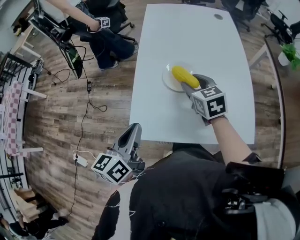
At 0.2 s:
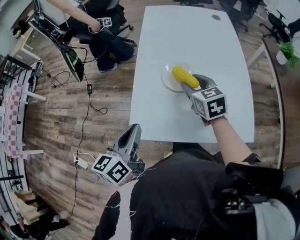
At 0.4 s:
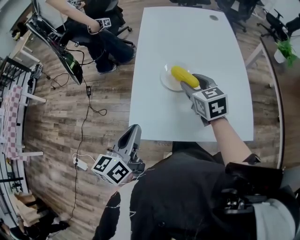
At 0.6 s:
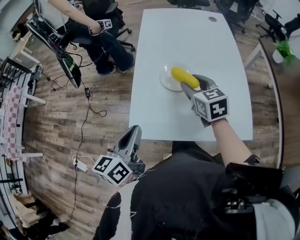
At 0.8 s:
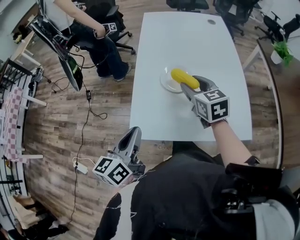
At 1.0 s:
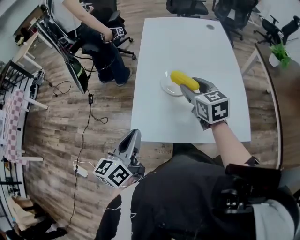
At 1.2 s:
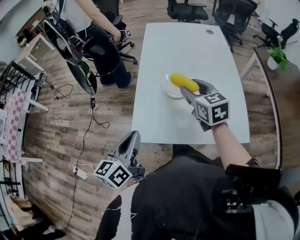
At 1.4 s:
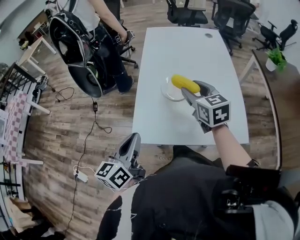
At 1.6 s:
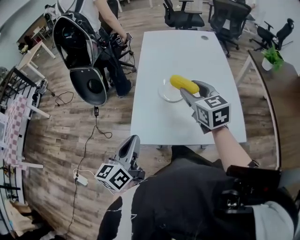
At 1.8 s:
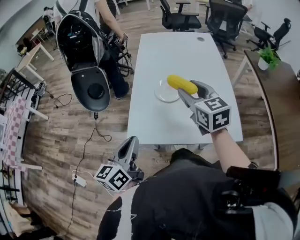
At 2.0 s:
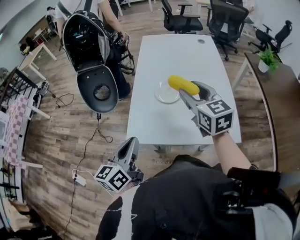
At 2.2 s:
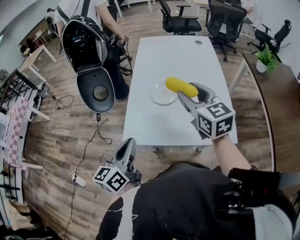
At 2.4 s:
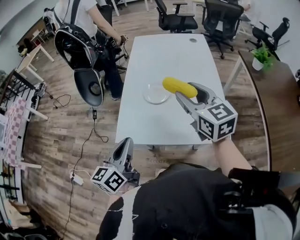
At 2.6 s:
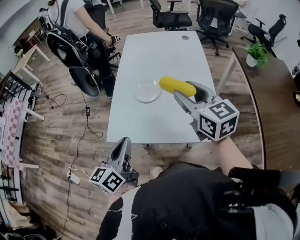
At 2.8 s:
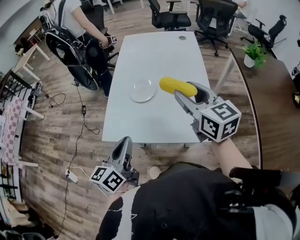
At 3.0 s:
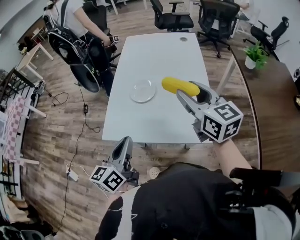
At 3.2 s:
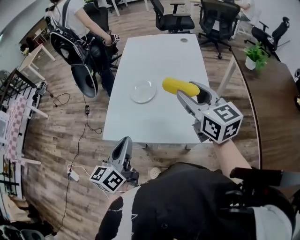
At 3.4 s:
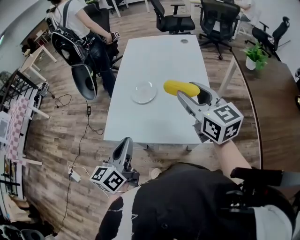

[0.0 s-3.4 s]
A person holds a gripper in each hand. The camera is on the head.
0.0 to 1.6 s: The left gripper is displaced backward by about 5 cm, while the right gripper goes roughly 15 cm upward and backward.
1.6 to 3.4 s: The right gripper travels to the right, upward and backward by about 20 cm. The left gripper is displaced to the right by some 15 cm.

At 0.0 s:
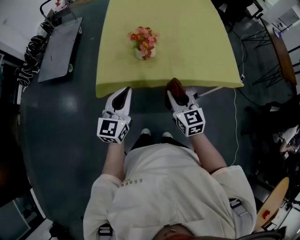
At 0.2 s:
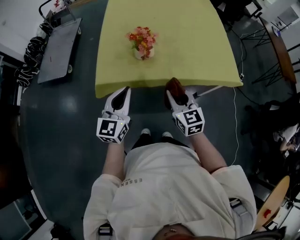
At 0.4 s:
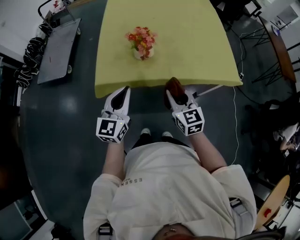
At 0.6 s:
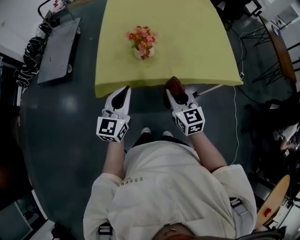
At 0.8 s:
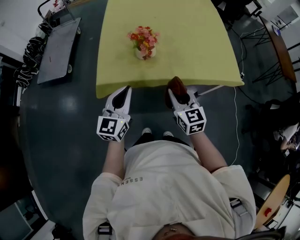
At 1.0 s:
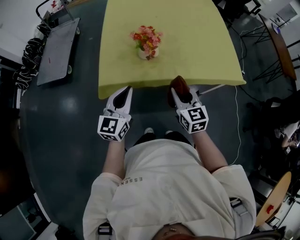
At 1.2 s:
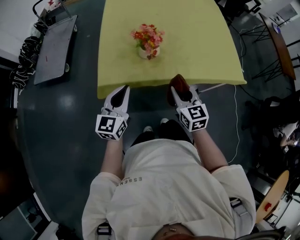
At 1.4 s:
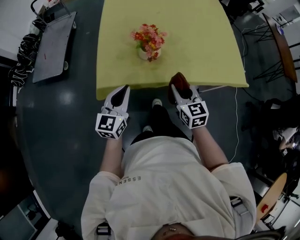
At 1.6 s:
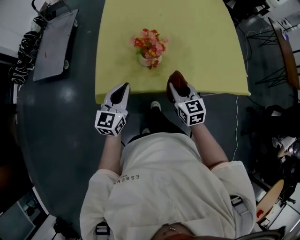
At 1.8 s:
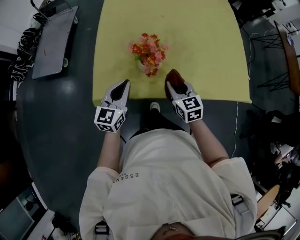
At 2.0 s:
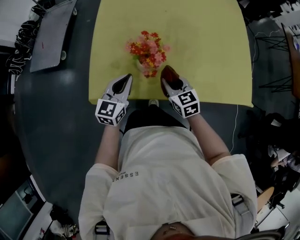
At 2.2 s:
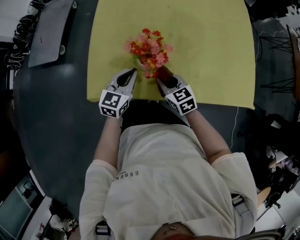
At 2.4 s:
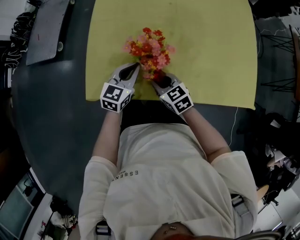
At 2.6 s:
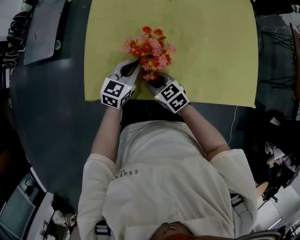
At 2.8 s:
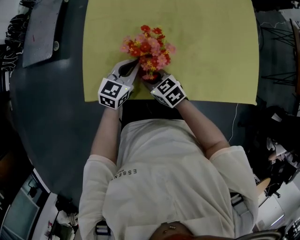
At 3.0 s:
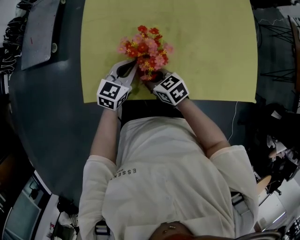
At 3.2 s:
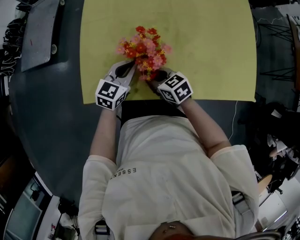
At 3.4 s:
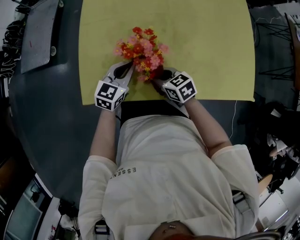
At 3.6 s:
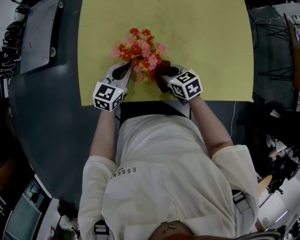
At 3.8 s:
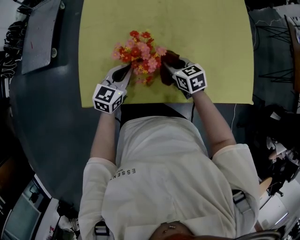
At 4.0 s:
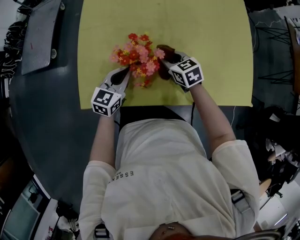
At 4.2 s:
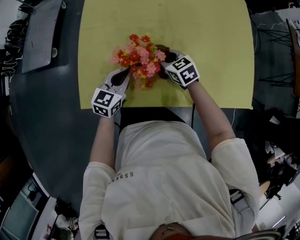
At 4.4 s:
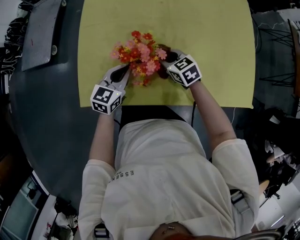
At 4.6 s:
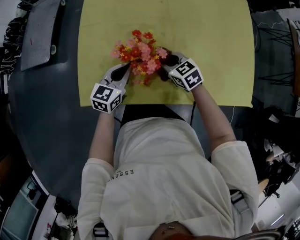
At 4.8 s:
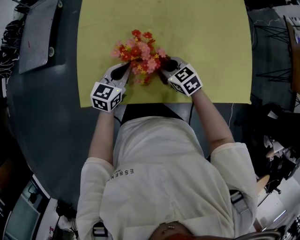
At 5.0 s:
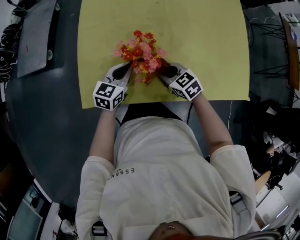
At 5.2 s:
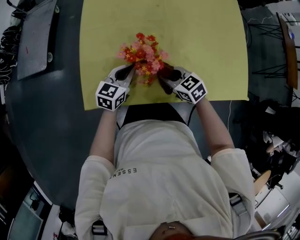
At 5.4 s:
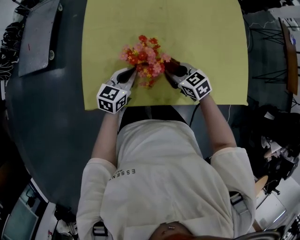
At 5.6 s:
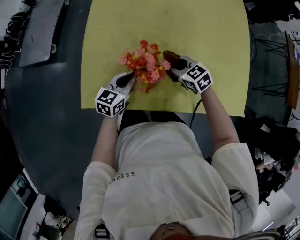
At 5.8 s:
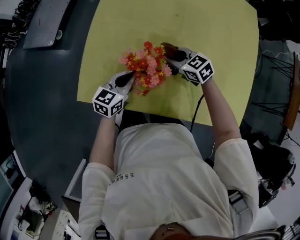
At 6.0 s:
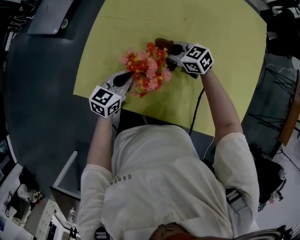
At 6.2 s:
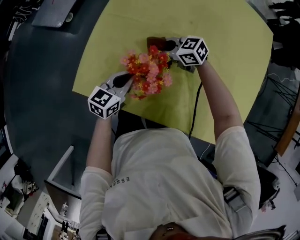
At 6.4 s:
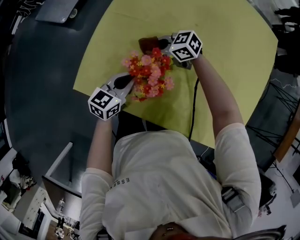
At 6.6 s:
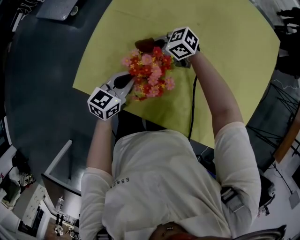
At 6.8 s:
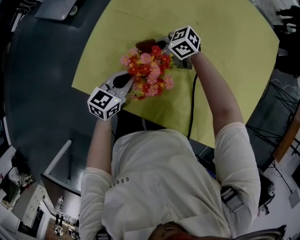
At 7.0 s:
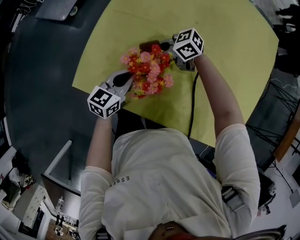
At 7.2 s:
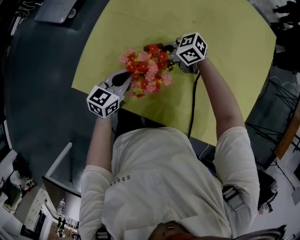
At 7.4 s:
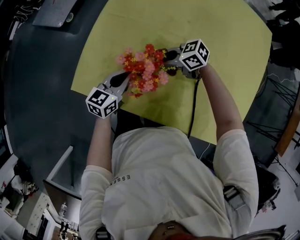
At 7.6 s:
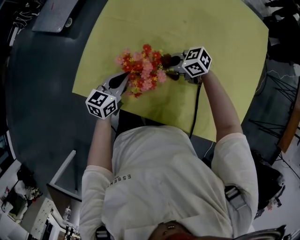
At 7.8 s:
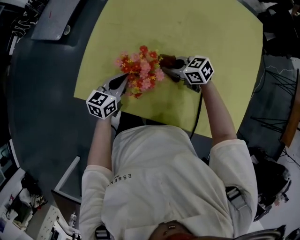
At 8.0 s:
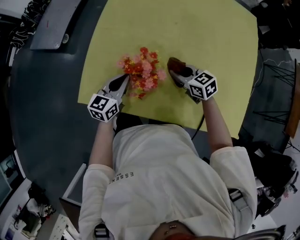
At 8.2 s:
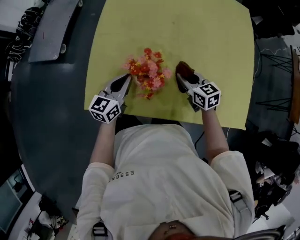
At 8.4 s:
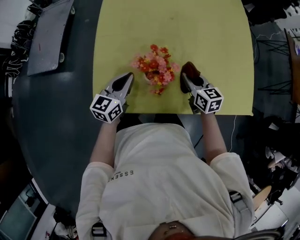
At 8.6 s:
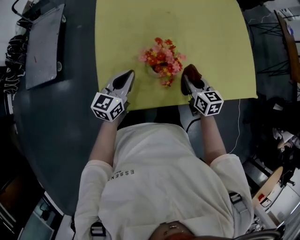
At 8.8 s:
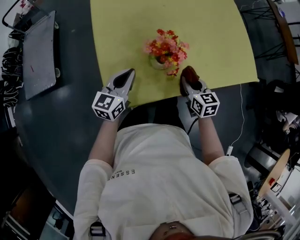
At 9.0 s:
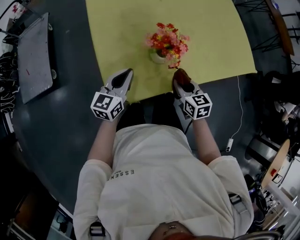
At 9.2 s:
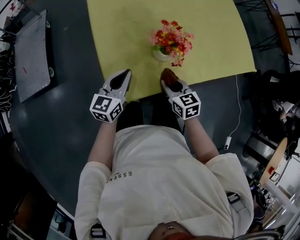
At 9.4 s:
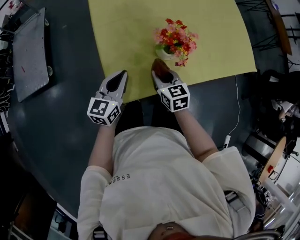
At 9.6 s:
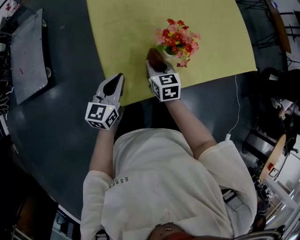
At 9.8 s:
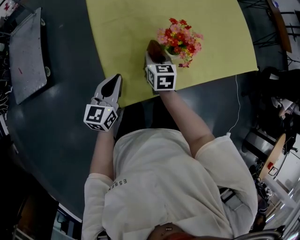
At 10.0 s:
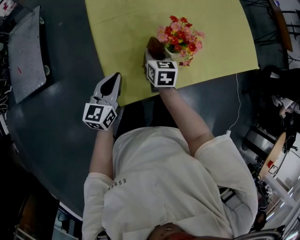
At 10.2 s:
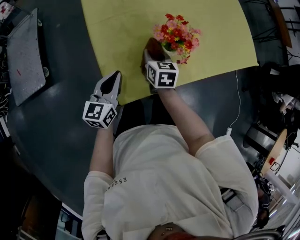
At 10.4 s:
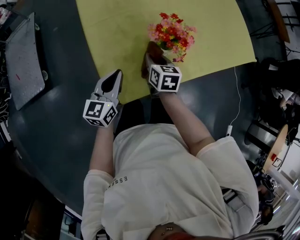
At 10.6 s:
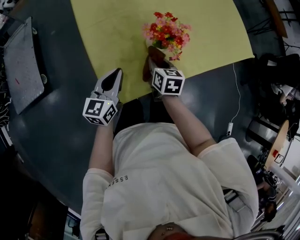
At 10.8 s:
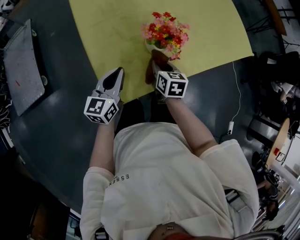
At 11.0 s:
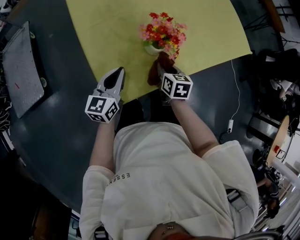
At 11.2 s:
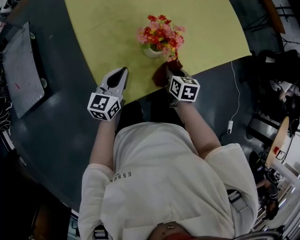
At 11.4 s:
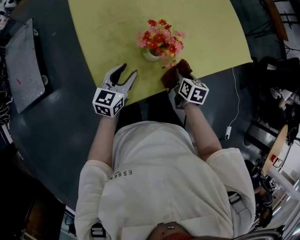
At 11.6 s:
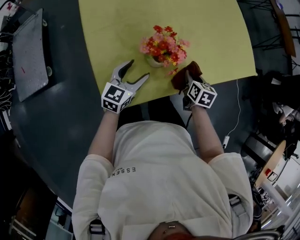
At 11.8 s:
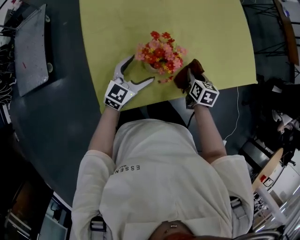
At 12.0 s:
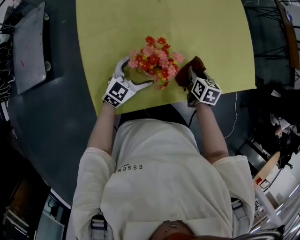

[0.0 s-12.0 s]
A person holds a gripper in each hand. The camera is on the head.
0.0 to 1.6 s: The two grippers go roughly 15 cm forward and downward.
1.6 to 3.0 s: The left gripper is displaced forward, downward and to the right by roughly 20 cm. Meanwhile the right gripper travels downward, forward and to the left by approximately 20 cm, and swivels about 40 degrees.
3.0 to 4.4 s: The right gripper travels to the right and forward by approximately 15 cm.
4.4 to 6.0 s: The right gripper is displaced forward by about 10 cm, and swivels roughly 30 degrees.
6.0 to 7.6 s: The right gripper changes its angle by about 20 degrees.
7.6 to 9.0 s: The right gripper shifts by about 20 cm, and turns by roughly 90 degrees. Meanwhile the left gripper ends up about 15 cm from where it was, and changes its angle by some 30 degrees.
9.0 to 10.4 s: The left gripper shifts approximately 5 cm to the left; the right gripper heads to the left and forward, covering roughly 15 cm.
10.4 to 12.0 s: The grippers both shift to the right and forward by about 20 cm. The left gripper turns by approximately 30 degrees, and opens.

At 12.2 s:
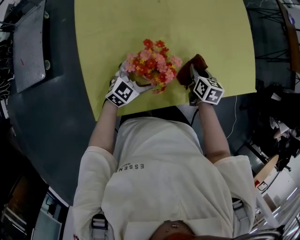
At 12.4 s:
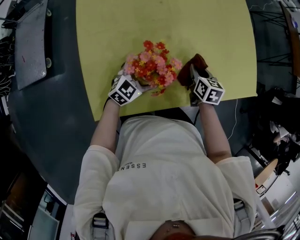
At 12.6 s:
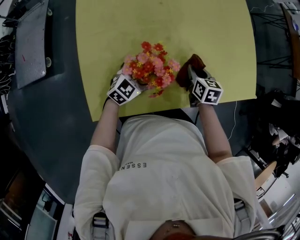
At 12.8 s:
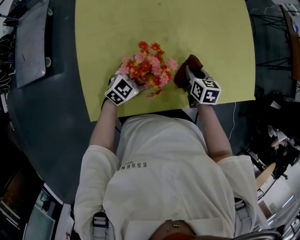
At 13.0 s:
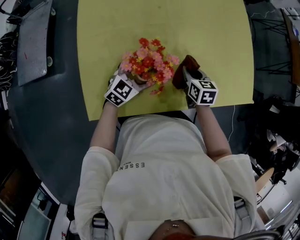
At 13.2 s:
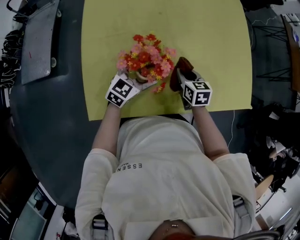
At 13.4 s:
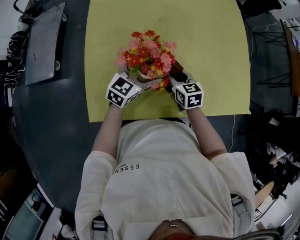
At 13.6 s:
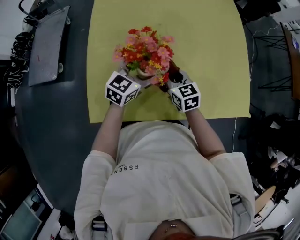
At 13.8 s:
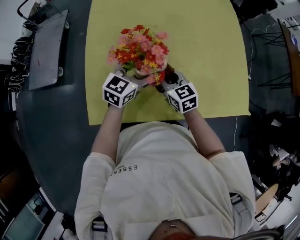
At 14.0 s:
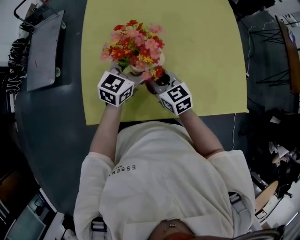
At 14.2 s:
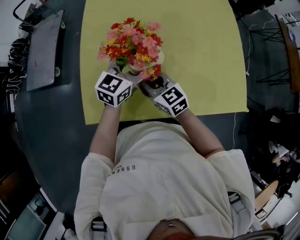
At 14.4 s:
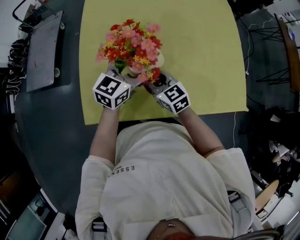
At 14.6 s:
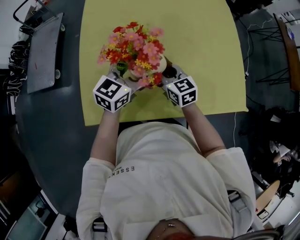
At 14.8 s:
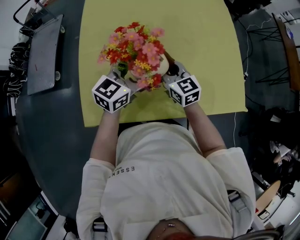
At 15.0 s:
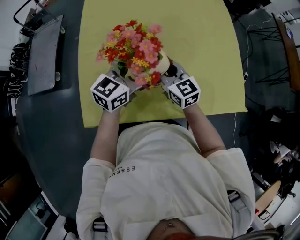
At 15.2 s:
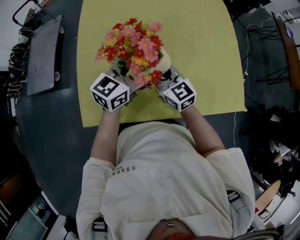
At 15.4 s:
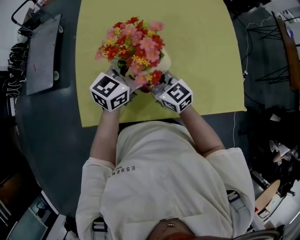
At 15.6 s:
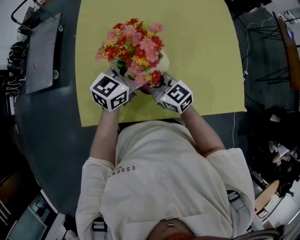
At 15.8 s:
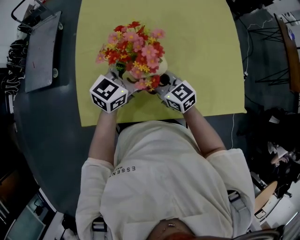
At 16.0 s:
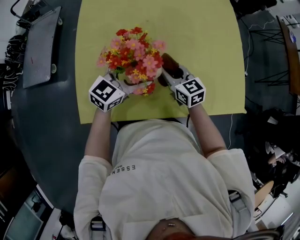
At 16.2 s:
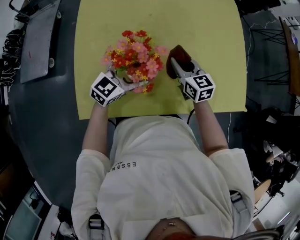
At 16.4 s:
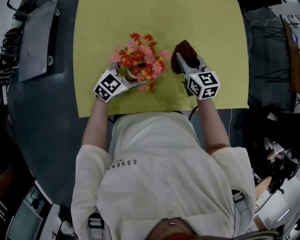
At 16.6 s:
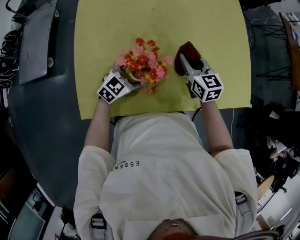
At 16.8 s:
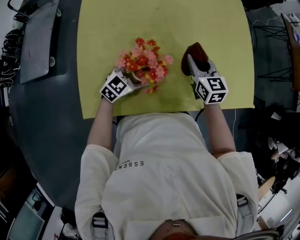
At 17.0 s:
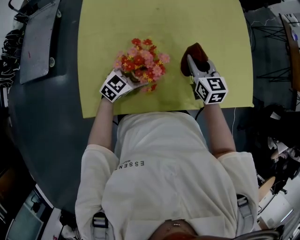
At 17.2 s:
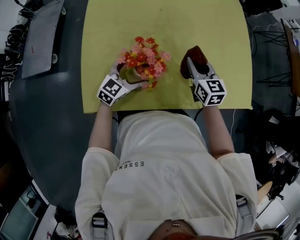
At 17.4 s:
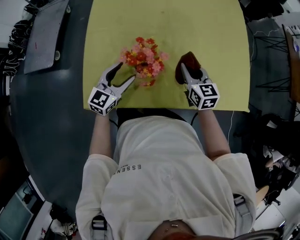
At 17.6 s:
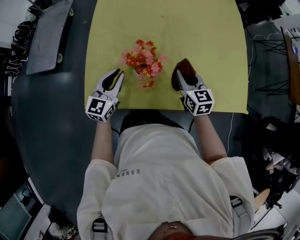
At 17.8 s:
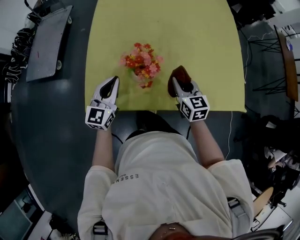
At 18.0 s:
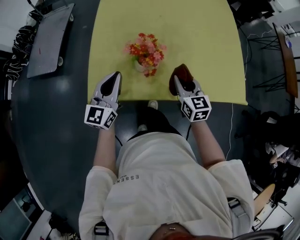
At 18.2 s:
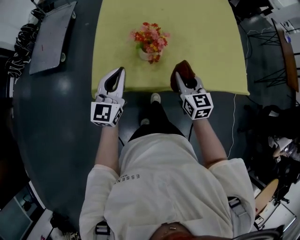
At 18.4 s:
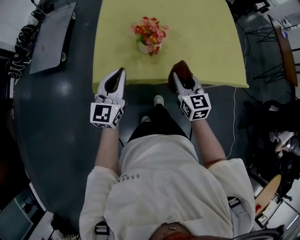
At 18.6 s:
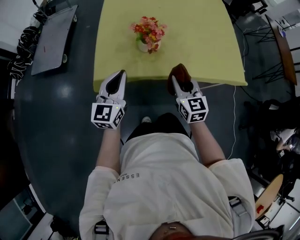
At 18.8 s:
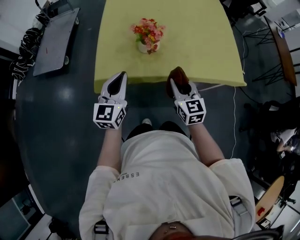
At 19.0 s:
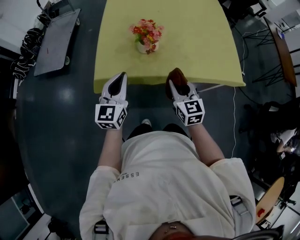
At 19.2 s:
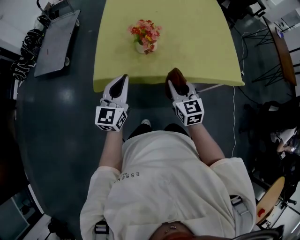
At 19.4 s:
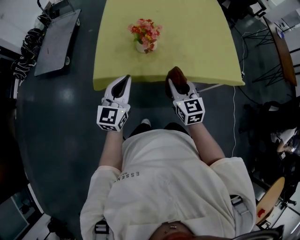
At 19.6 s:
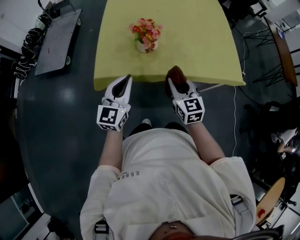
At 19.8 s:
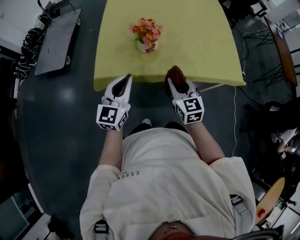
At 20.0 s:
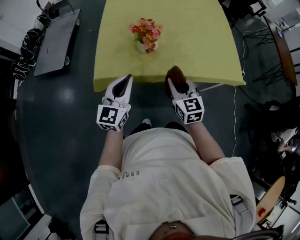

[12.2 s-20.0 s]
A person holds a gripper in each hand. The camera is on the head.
12.2 to 13.8 s: The right gripper moves about 15 cm, and changes its angle by about 40 degrees, while the left gripper shifts roughly 15 cm upward, and rotates about 30 degrees.
13.8 to 15.4 s: The left gripper moves upward and to the right, approximately 10 cm. The right gripper moves left and right over about 10 cm, changing direction 2 times, and rotates approximately 20 degrees.
15.4 to 16.8 s: The left gripper is displaced downward by roughly 20 cm, and rotates approximately 30 degrees. The right gripper is displaced to the right, forward and downward by approximately 15 cm, and swivels approximately 30 degrees.
16.8 to 18.4 s: The left gripper is displaced upward, backward and to the left by some 30 cm, changes its angle by roughly 50 degrees, and closes; the right gripper shifts some 25 cm backward.
18.4 to 20.0 s: The grippers both shift backward by about 5 cm.
